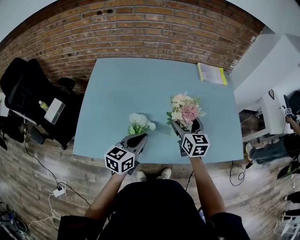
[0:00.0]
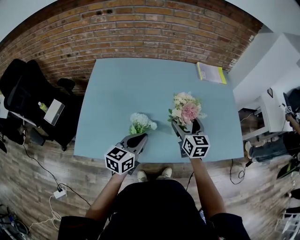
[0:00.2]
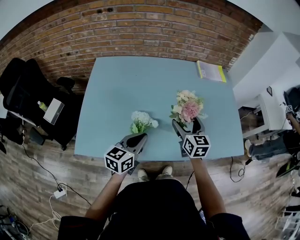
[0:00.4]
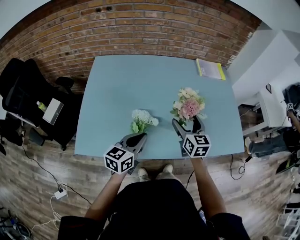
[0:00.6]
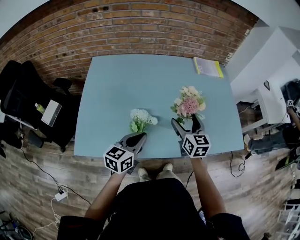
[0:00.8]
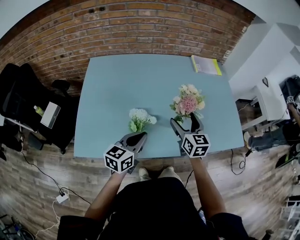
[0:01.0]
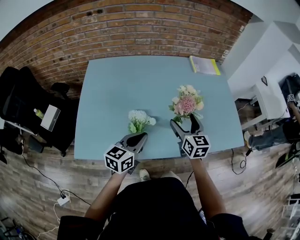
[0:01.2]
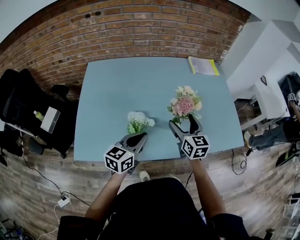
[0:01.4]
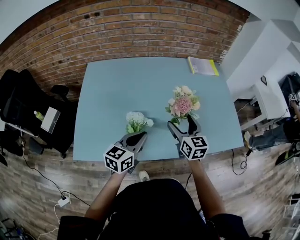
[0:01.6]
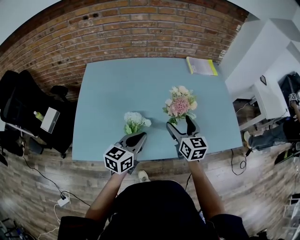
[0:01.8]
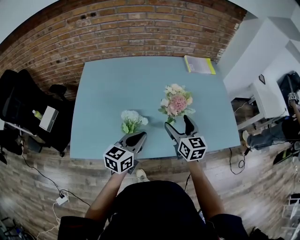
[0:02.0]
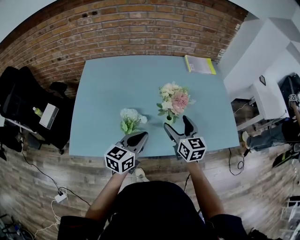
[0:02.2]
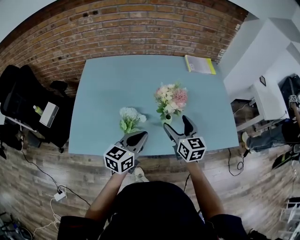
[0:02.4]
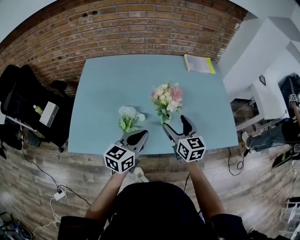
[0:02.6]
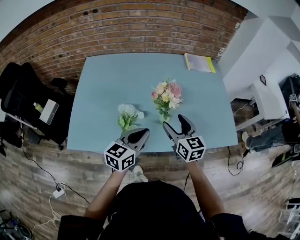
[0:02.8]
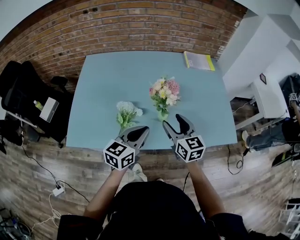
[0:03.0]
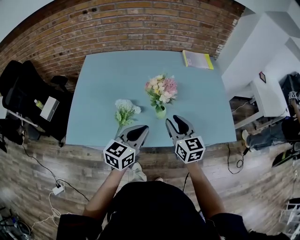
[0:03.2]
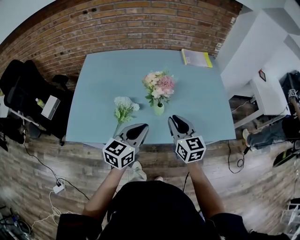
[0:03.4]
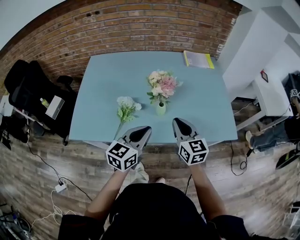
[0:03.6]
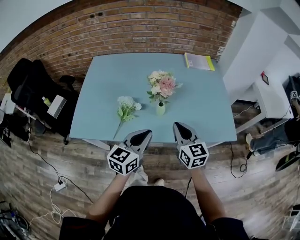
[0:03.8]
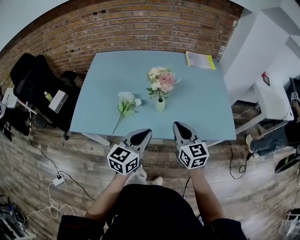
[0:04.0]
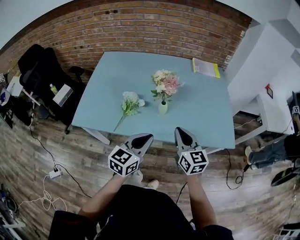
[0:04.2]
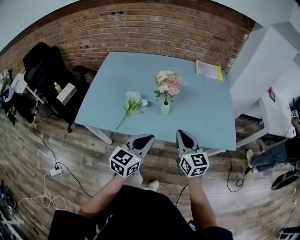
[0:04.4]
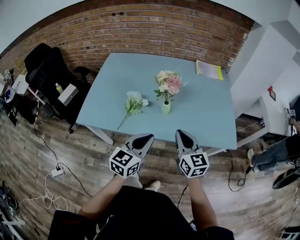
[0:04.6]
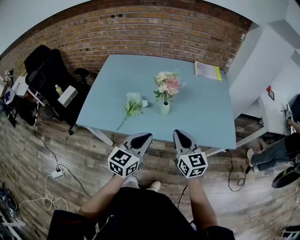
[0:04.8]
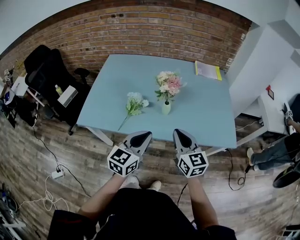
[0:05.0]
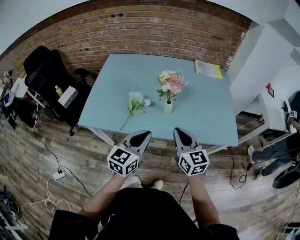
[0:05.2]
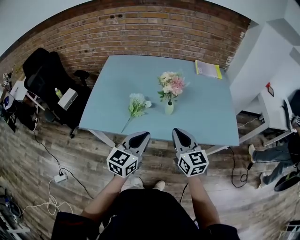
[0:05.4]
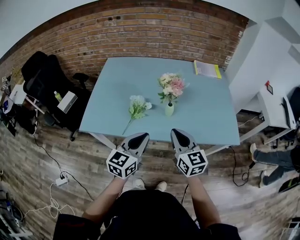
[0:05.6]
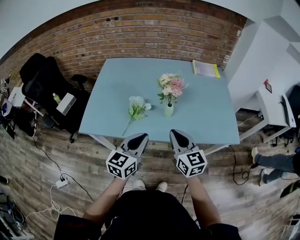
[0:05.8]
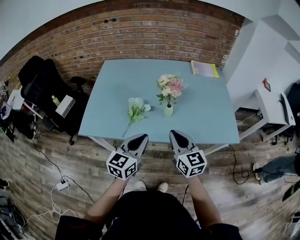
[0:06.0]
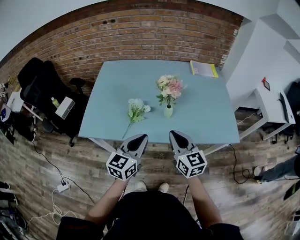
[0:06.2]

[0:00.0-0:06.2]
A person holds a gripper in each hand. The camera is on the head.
0:00.0 to 0:01.6: The grippers stay close to where they were, moving slightly.
0:01.6 to 0:03.2: The left gripper travels to the right by some 10 cm. Meanwhile the right gripper moves backward, about 5 cm, and closes up.
0:03.2 to 0:04.6: Both grippers travel together backward and to the right, some 15 cm.
0:04.6 to 0:06.2: The grippers both shift to the left by roughly 5 cm.

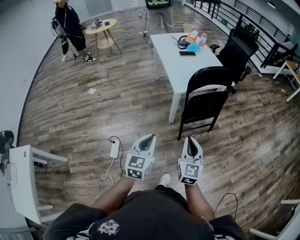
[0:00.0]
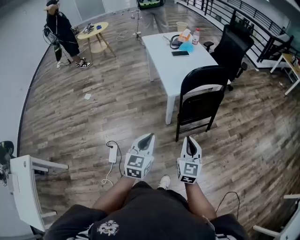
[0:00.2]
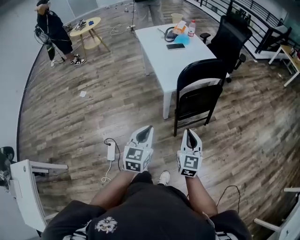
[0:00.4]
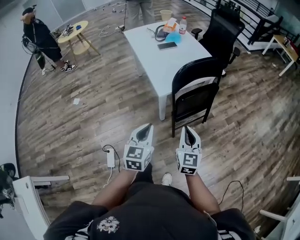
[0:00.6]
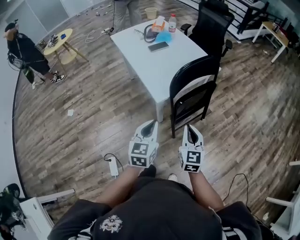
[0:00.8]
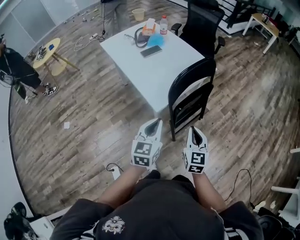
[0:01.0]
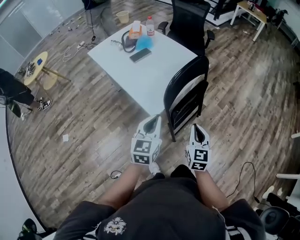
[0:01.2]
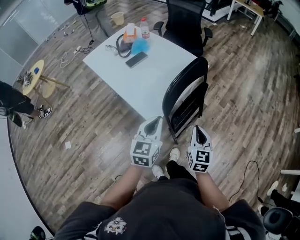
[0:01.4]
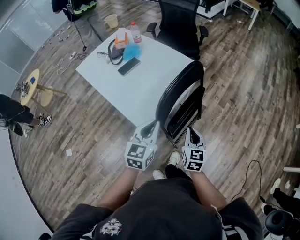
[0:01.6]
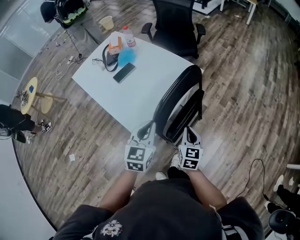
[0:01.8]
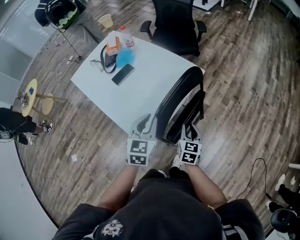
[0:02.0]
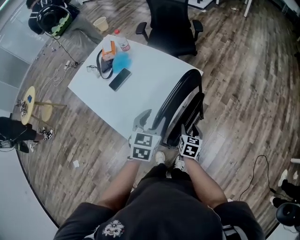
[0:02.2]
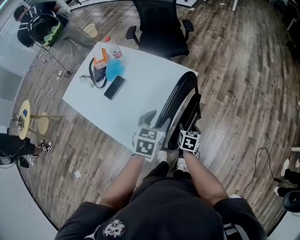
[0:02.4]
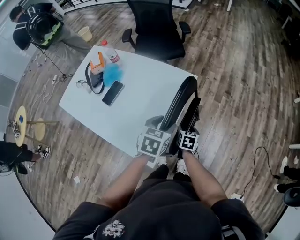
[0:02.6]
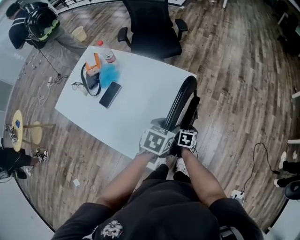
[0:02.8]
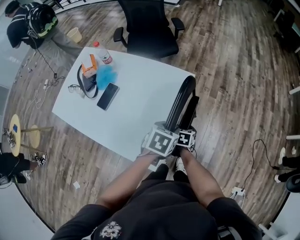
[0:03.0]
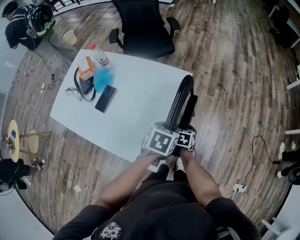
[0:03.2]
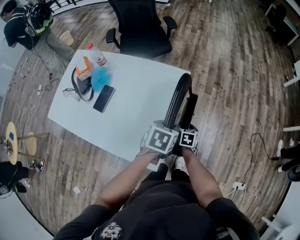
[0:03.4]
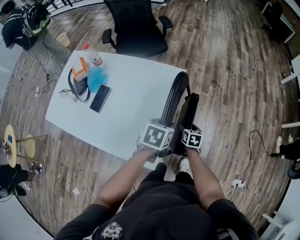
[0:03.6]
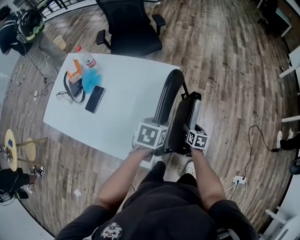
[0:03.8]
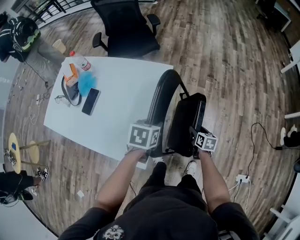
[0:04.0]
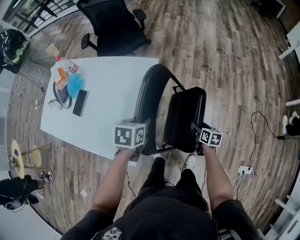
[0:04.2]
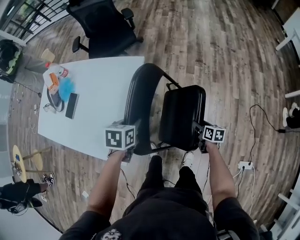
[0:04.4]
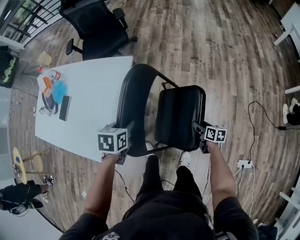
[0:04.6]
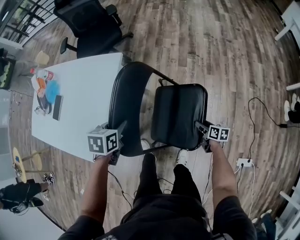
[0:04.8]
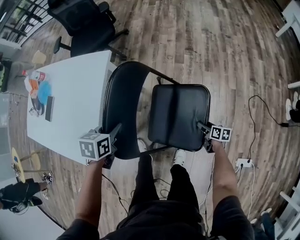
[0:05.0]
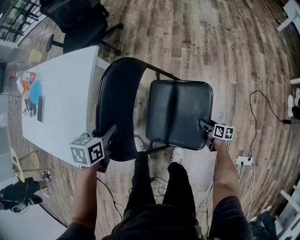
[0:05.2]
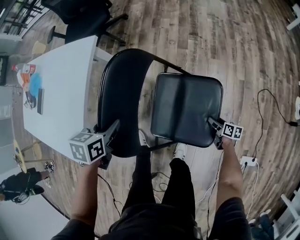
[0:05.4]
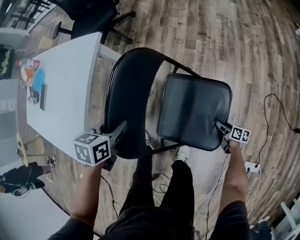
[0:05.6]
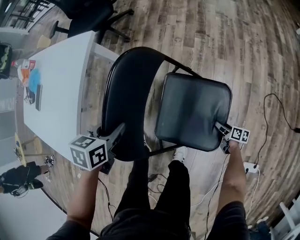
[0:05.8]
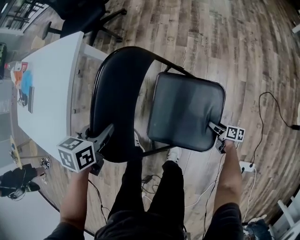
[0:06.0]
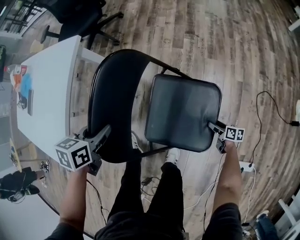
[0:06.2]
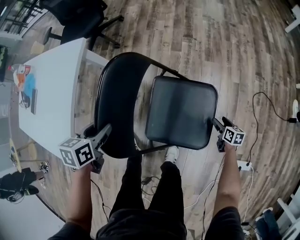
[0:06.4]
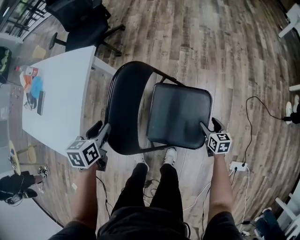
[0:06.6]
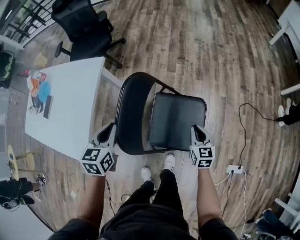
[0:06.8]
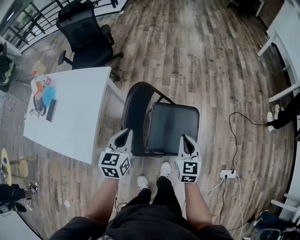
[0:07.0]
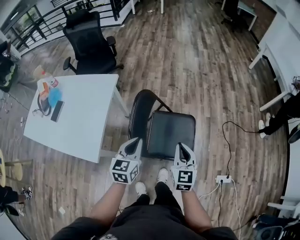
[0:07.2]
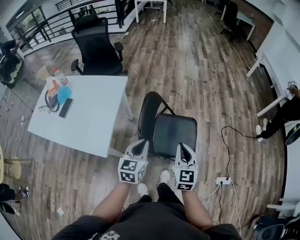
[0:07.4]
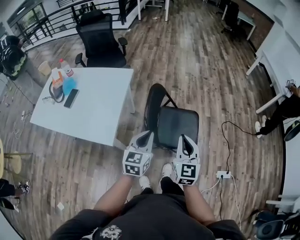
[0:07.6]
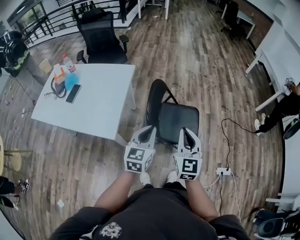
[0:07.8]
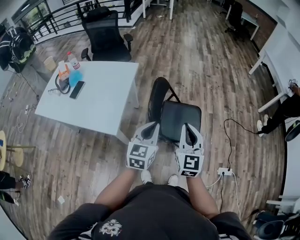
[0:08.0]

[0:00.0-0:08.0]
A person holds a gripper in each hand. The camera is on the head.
0:00.0 to 0:01.6: Both grippers are carried some 40 cm. The left gripper swivels about 30 degrees. The right gripper swivels roughly 40 degrees.
0:01.6 to 0:03.2: The left gripper moves some 20 cm, angles its fingers downward, by about 40 degrees, and opens its fingers; the right gripper heads downward, covering roughly 20 cm, points its fingers some 30 degrees further downward, and opens up.
0:03.2 to 0:04.8: The right gripper is displaced to the right by some 40 cm, and turns by some 40 degrees. The left gripper shifts approximately 15 cm to the right and downward.
0:04.8 to 0:06.4: The right gripper travels to the right and downward by roughly 30 cm; the left gripper is displaced to the right and downward by approximately 15 cm.
0:06.4 to 0:08.0: The left gripper shifts approximately 40 cm upward and backward, points its fingers approximately 40 degrees further upward, and closes; the right gripper heads upward, to the left and backward, covering roughly 80 cm, points its fingers roughly 40 degrees further upward, and closes its fingers.

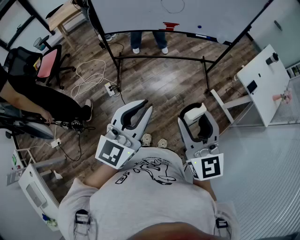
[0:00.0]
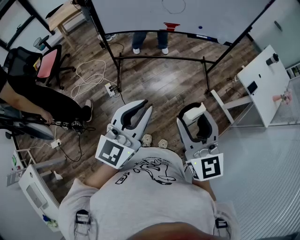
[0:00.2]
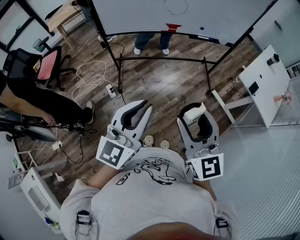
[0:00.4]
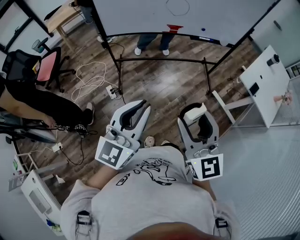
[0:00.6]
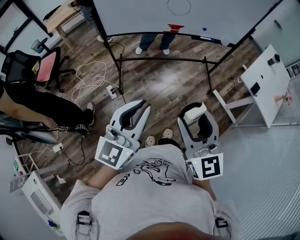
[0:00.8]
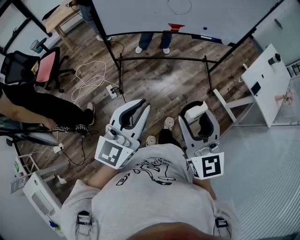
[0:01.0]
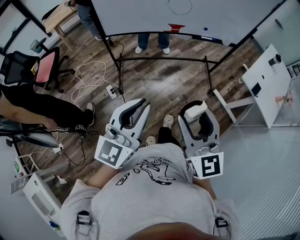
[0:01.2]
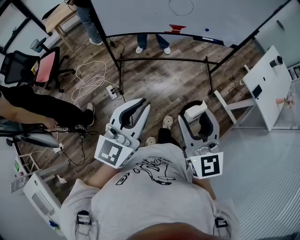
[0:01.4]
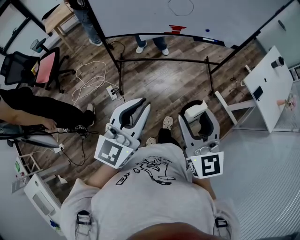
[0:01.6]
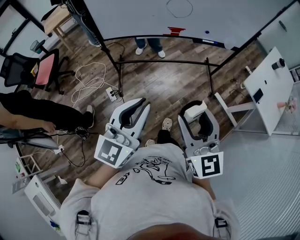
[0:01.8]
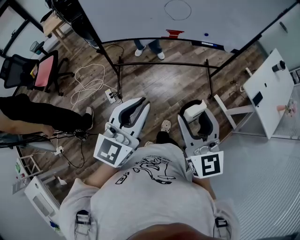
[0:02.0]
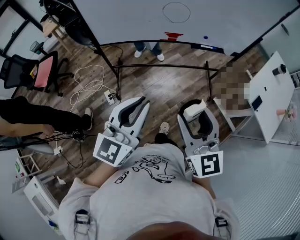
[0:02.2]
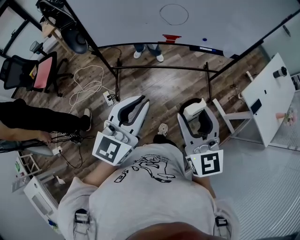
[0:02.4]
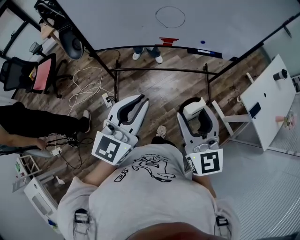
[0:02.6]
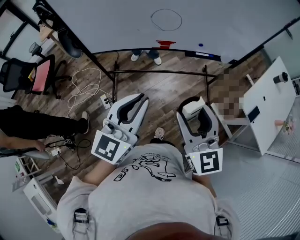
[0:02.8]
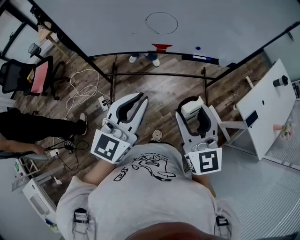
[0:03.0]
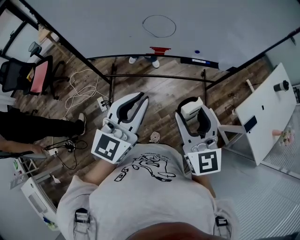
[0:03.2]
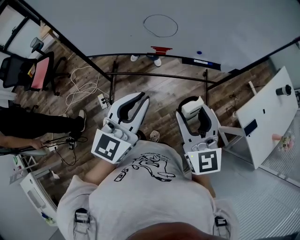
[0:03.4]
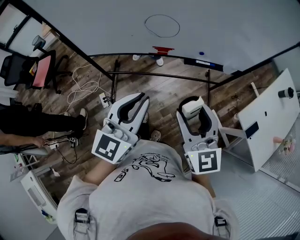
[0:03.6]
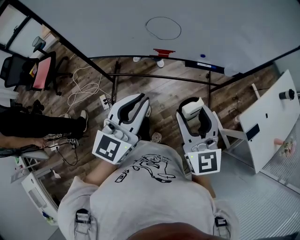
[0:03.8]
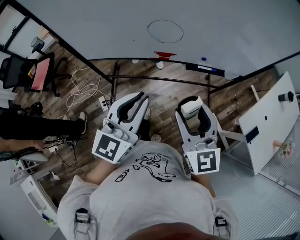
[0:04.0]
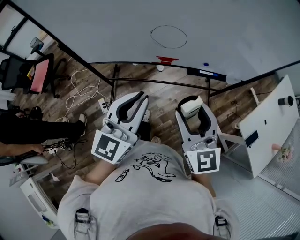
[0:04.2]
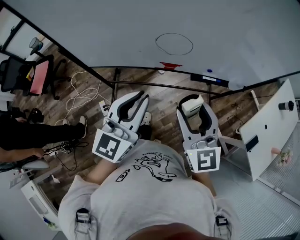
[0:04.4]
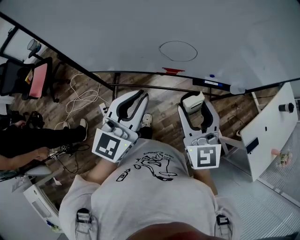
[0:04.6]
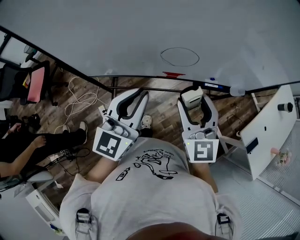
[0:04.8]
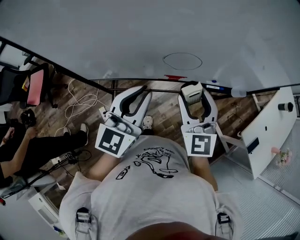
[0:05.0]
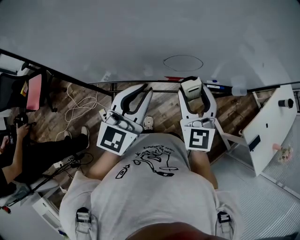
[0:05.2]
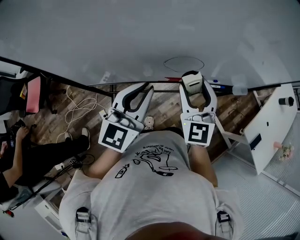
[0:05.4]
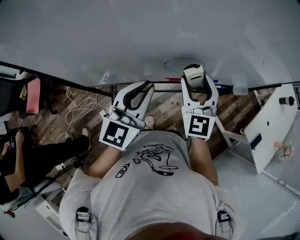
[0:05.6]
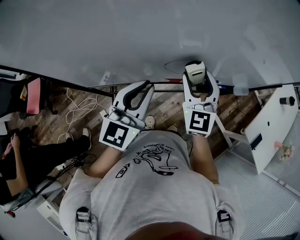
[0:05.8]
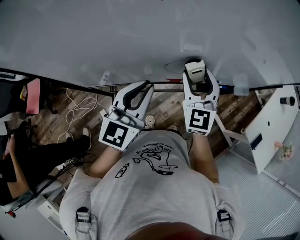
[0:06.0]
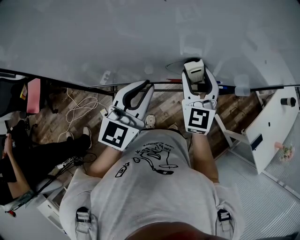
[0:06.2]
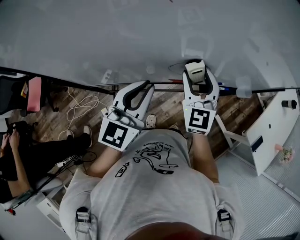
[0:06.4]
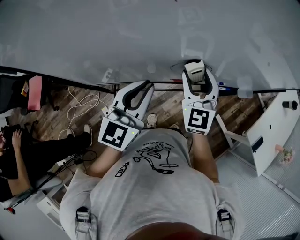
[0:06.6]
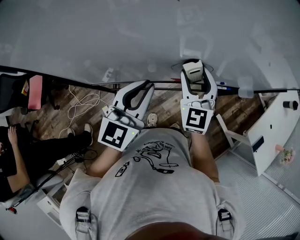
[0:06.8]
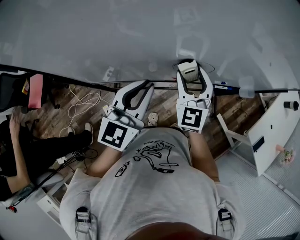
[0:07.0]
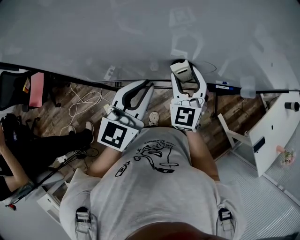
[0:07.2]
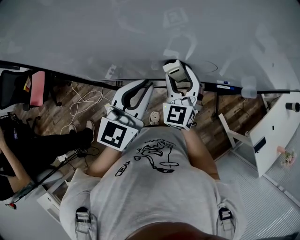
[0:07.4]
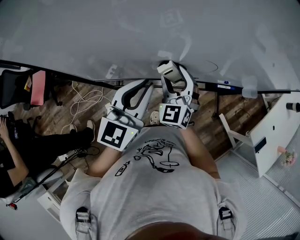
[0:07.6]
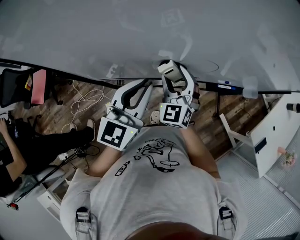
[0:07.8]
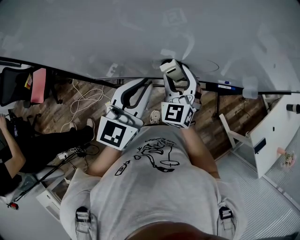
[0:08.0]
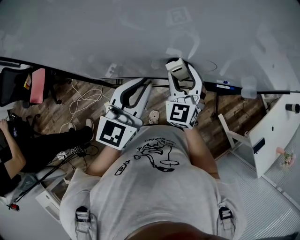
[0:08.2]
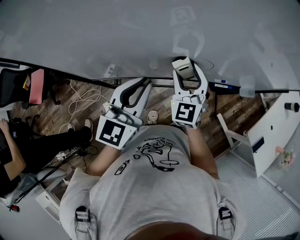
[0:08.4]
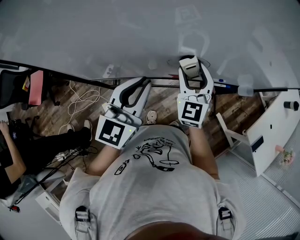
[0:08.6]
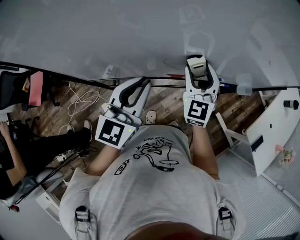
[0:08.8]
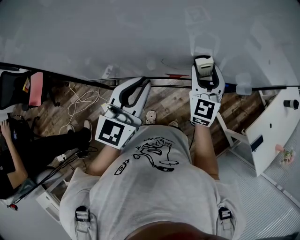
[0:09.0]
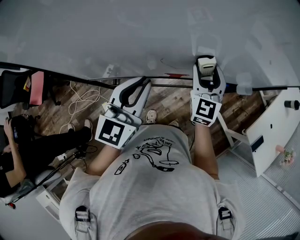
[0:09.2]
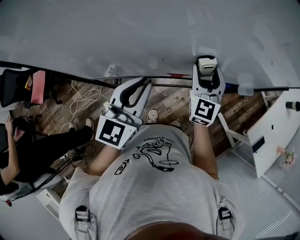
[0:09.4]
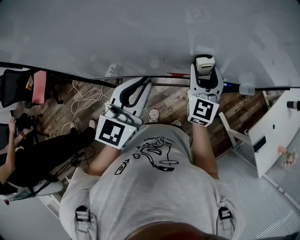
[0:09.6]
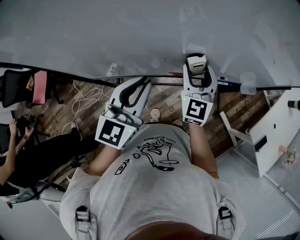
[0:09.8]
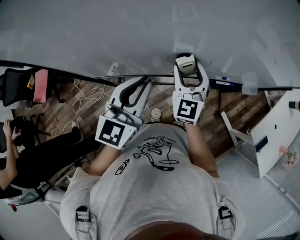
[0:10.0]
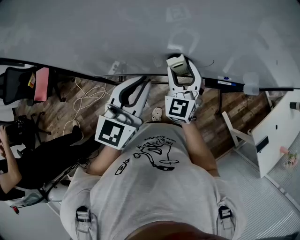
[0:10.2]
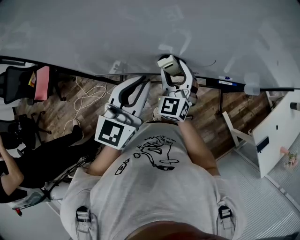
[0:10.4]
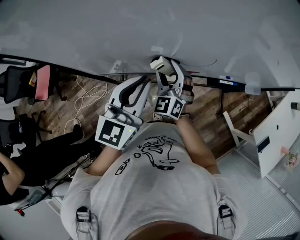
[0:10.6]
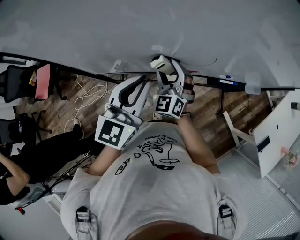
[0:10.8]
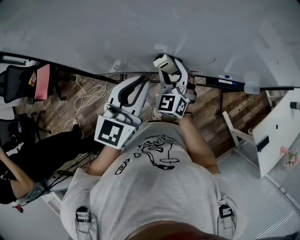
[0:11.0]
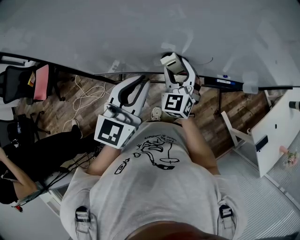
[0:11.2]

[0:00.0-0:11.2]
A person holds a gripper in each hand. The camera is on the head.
0:00.0 to 0:01.6: The grippers both shift forward and to the left by some 10 cm.
0:01.6 to 0:03.2: Both grippers move forward and to the right, some 30 cm.
0:03.2 to 0:04.8: The grippers both shift forward and to the left by roughly 25 cm.
0:04.8 to 0:06.4: The left gripper moves forward, roughly 10 cm, while the right gripper moves forward, some 15 cm.
0:06.4 to 0:08.0: The right gripper goes roughly 10 cm to the left and downward.
0:08.0 to 0:09.6: The right gripper moves to the right, some 15 cm, and swivels approximately 20 degrees.
0:09.6 to 0:11.2: The right gripper moves to the left and downward, roughly 10 cm, and turns by some 20 degrees.
